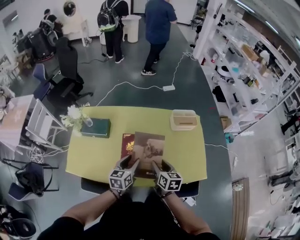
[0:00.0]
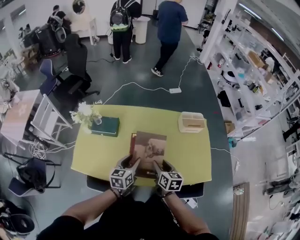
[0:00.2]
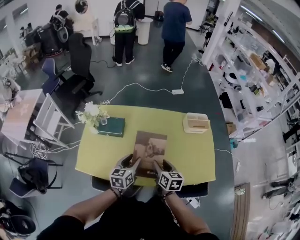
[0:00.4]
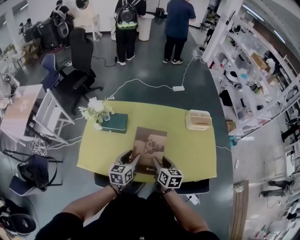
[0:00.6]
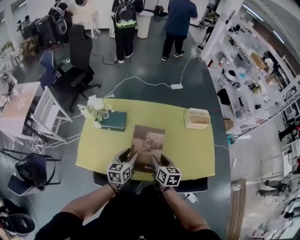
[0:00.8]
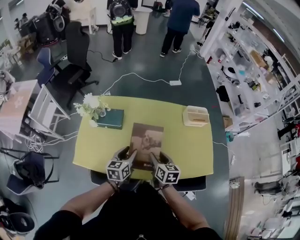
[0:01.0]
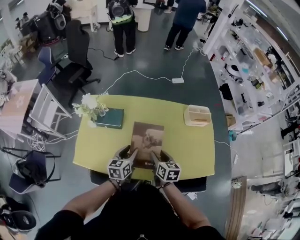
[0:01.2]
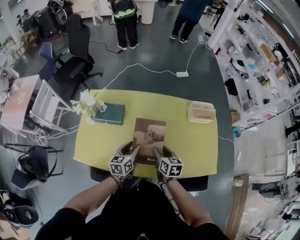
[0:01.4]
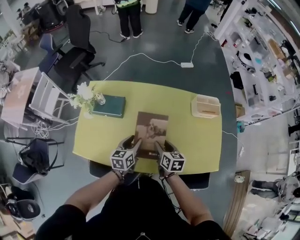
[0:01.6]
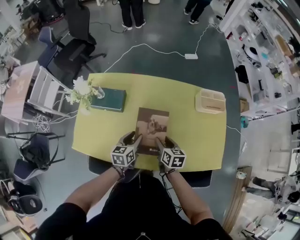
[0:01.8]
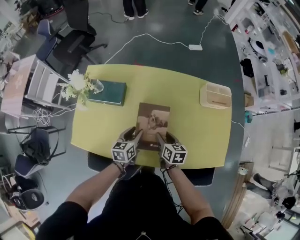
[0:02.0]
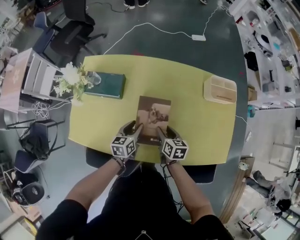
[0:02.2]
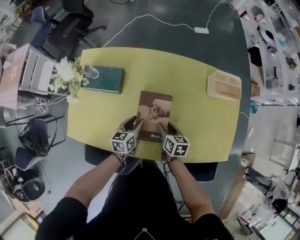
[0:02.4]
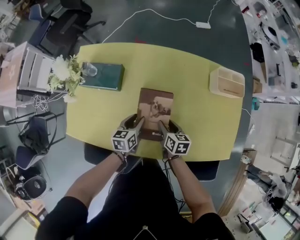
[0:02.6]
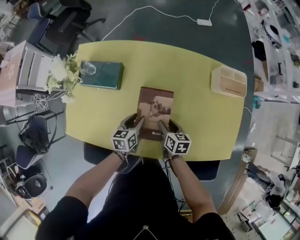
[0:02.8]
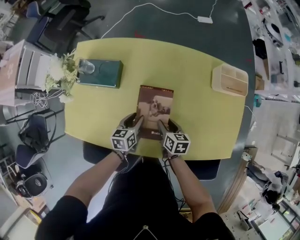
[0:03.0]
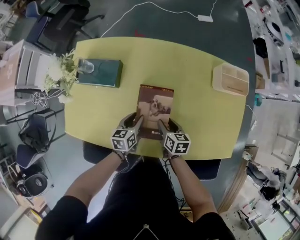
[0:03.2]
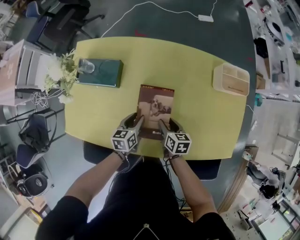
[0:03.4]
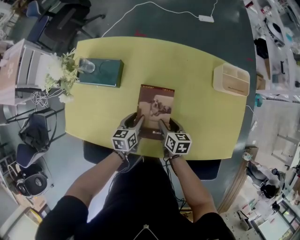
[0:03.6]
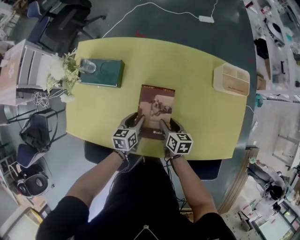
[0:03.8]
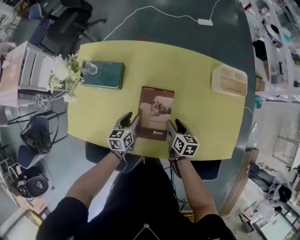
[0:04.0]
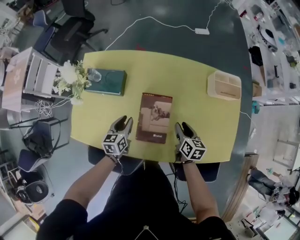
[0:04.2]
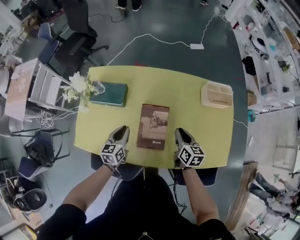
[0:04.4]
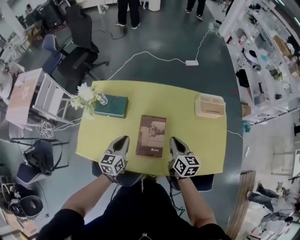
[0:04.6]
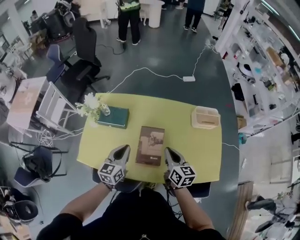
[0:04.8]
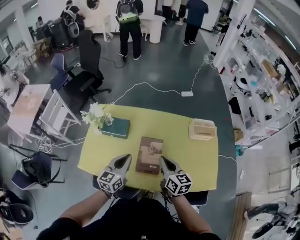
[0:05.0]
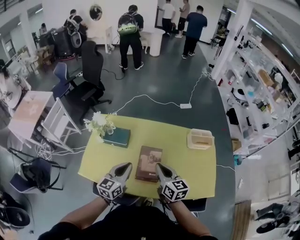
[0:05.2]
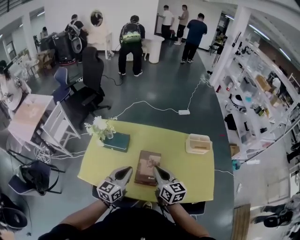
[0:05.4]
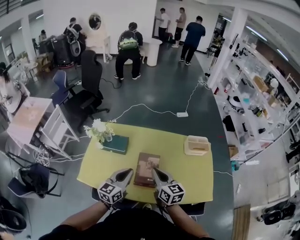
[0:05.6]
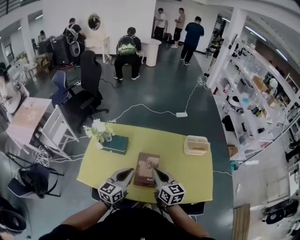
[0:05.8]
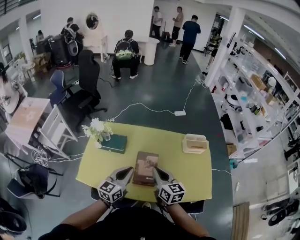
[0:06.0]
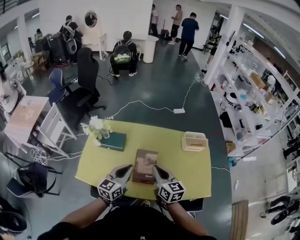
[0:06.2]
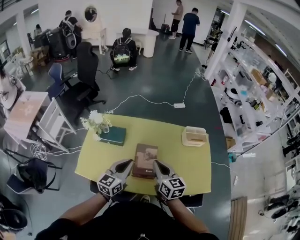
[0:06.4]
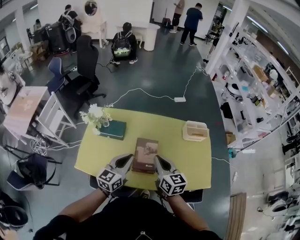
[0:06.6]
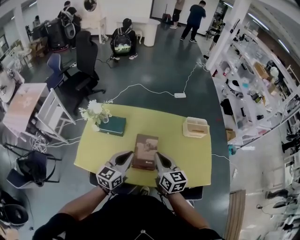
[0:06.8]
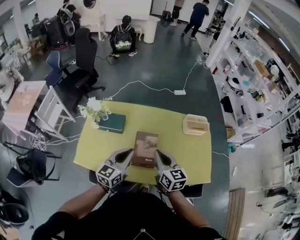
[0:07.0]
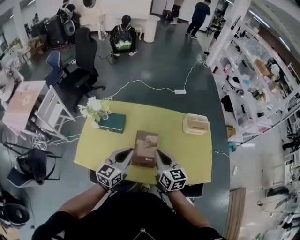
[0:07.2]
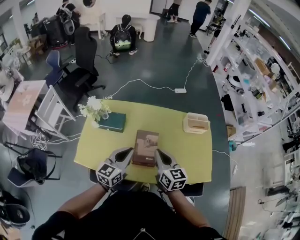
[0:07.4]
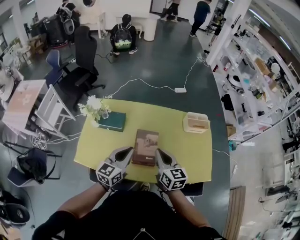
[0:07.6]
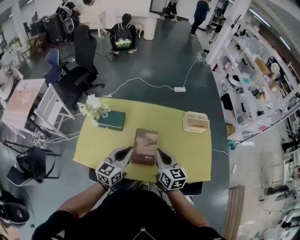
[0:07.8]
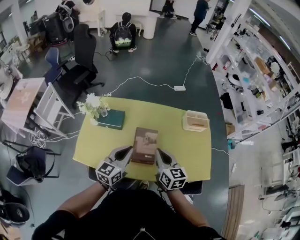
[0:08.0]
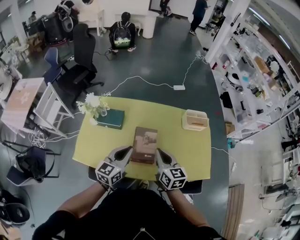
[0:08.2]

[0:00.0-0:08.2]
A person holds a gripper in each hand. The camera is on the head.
0.0 to 1.6 s: Both grippers travel together to the left, downward and forward, approximately 15 cm.
1.6 to 3.2 s: The two grippers go roughly 20 cm downward.
3.2 to 5.0 s: The two grippers go about 35 cm upward. The left gripper turns by about 30 degrees, and closes its fingers. Meanwhile the right gripper rotates some 30 degrees, and closes.
5.0 to 6.6 s: The right gripper shifts by some 5 cm. The left gripper changes place by approximately 5 cm.
6.6 to 8.2 s: The grippers make only small movements.

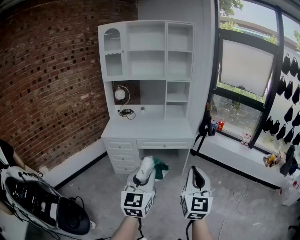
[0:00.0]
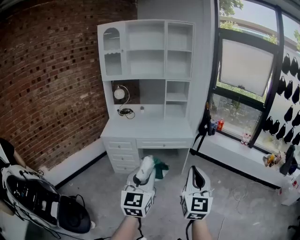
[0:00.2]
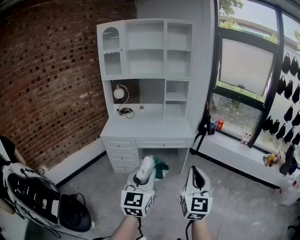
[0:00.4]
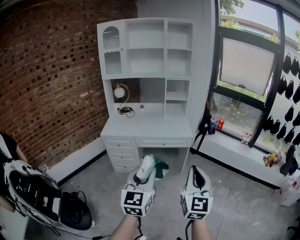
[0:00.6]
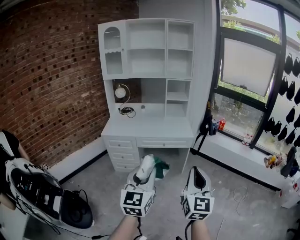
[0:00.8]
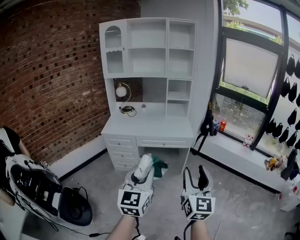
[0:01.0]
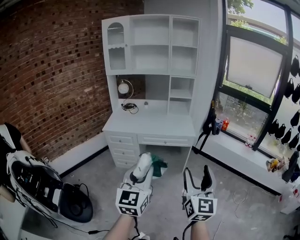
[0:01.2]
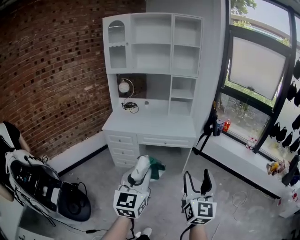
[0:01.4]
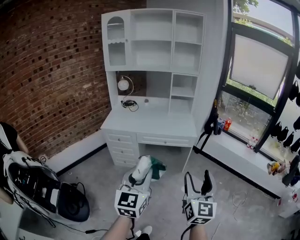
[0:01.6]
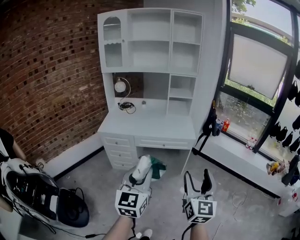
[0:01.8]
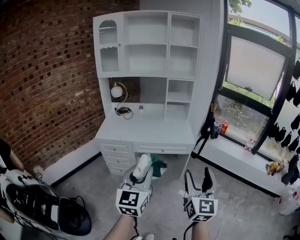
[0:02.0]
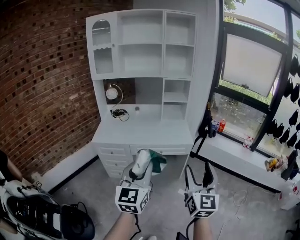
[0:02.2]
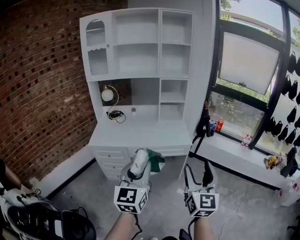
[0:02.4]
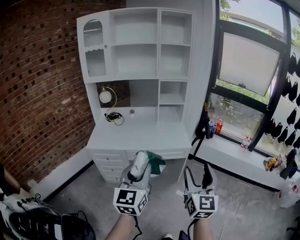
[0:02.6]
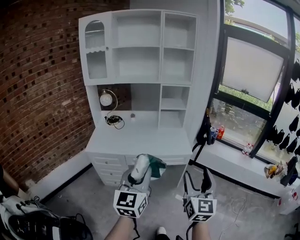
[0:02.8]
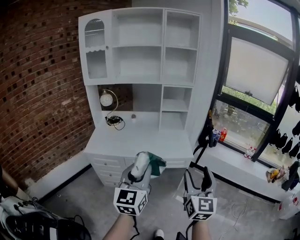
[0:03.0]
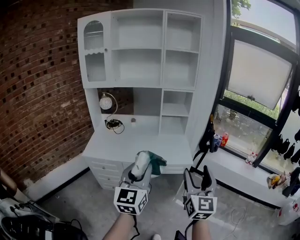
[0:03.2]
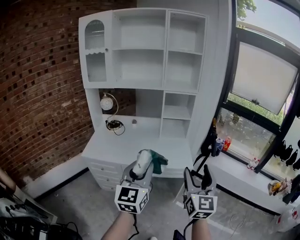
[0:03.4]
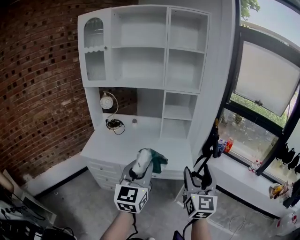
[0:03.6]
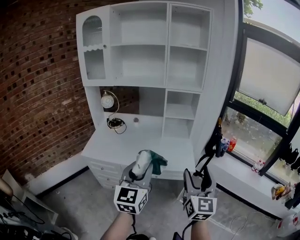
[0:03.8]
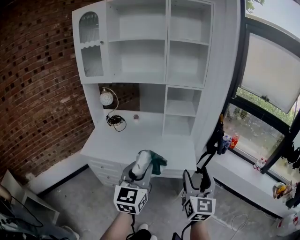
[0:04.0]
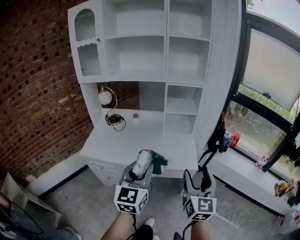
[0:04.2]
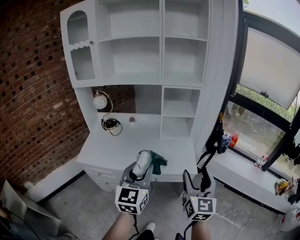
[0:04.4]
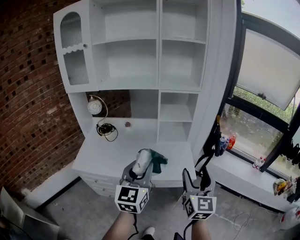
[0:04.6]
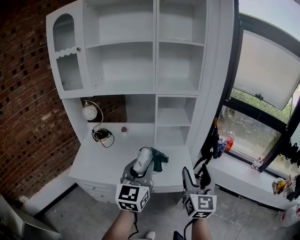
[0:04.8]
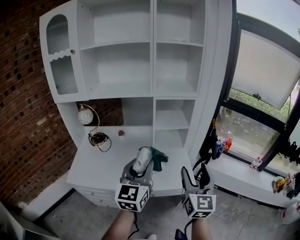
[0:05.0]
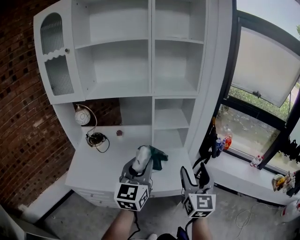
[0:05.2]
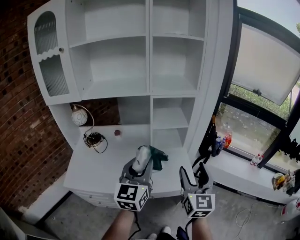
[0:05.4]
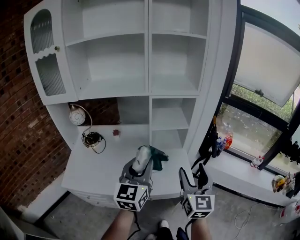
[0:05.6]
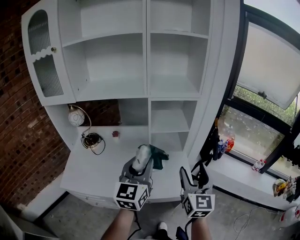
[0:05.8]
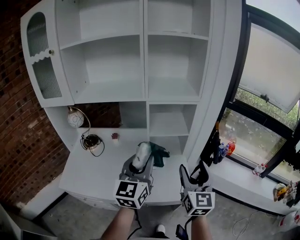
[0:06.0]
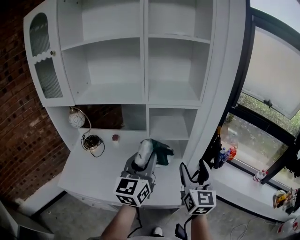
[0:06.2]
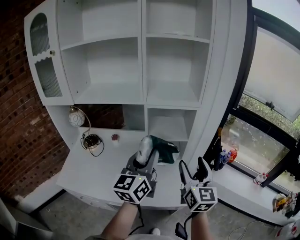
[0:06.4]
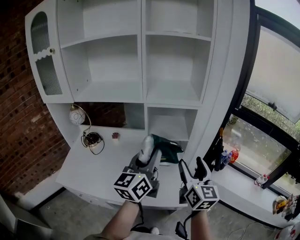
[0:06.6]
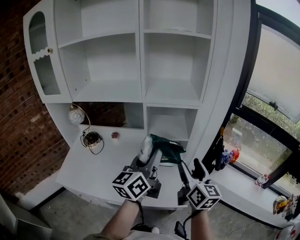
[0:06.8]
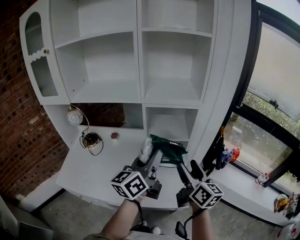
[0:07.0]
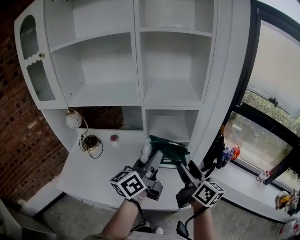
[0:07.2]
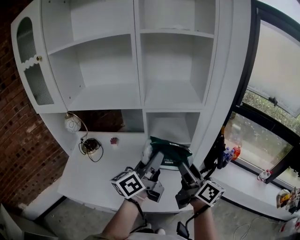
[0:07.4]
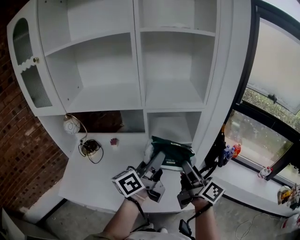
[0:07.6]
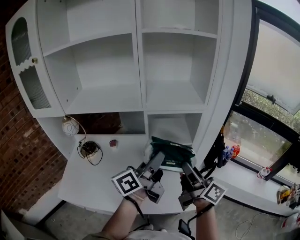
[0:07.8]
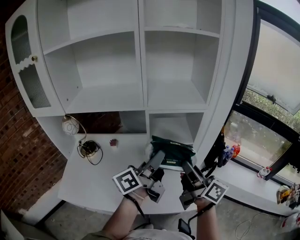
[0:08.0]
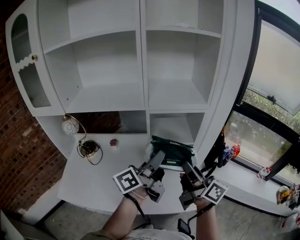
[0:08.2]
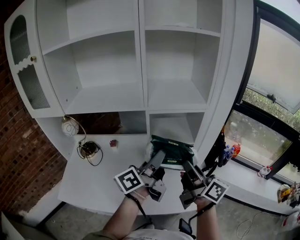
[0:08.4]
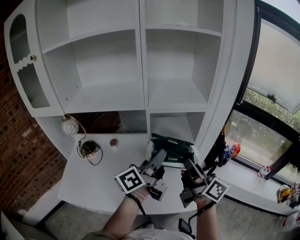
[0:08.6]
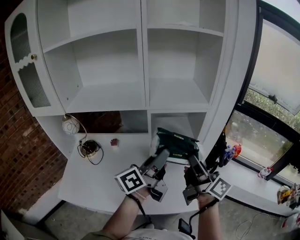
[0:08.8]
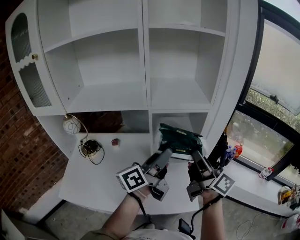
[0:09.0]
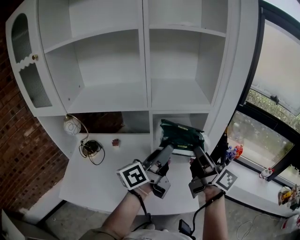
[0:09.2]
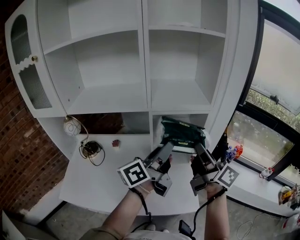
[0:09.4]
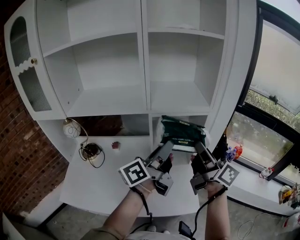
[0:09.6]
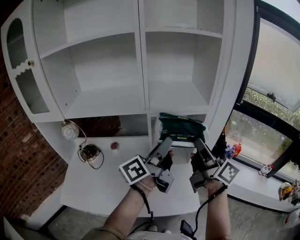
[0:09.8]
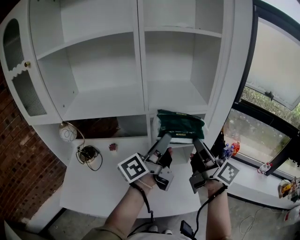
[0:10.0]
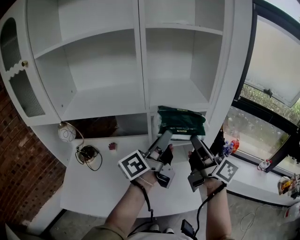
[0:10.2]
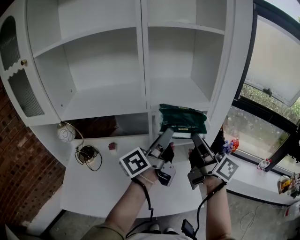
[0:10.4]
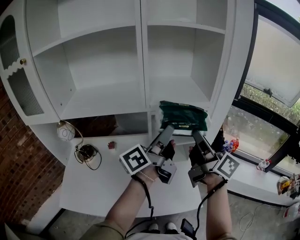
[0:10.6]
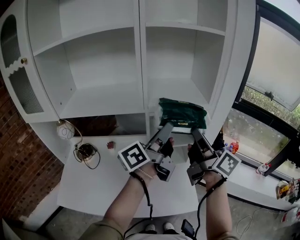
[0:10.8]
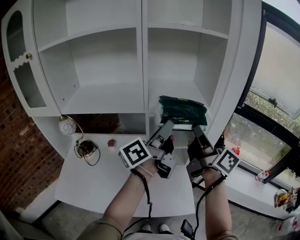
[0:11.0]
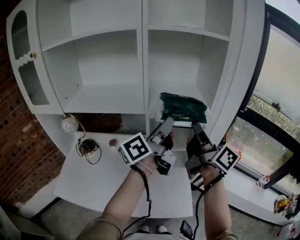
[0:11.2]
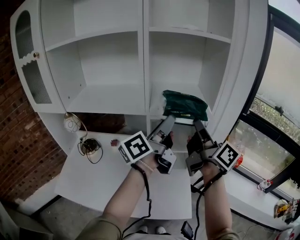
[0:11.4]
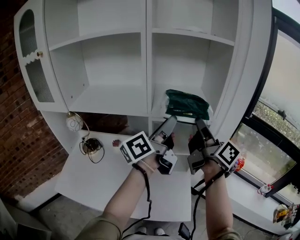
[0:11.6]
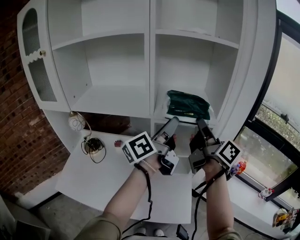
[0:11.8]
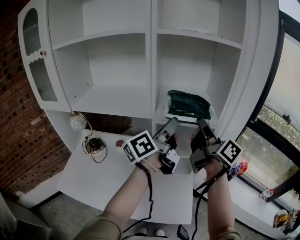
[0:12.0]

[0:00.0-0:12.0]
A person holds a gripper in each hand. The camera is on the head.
0.0 to 1.6 s: The right gripper is displaced forward and to the right by about 10 cm, and opens; the left gripper goes some 5 cm forward.
1.6 to 3.0 s: Both grippers travel together forward, roughly 25 cm.
3.0 to 4.4 s: The two grippers go some 20 cm forward.
4.4 to 6.0 s: Both grippers travel together forward, some 25 cm.
6.0 to 7.6 s: Both grippers move forward, about 10 cm. The right gripper rotates around the line of its fingers by about 60 degrees, clockwise from behind. The left gripper rotates around the line of its fingers by some 50 degrees, counterclockwise from behind.
7.6 to 9.0 s: The right gripper shifts by about 5 cm, and closes its fingers.
9.0 to 10.4 s: The left gripper ends up some 5 cm from where it was, and closes up; the right gripper ends up approximately 5 cm from where it was.
10.4 to 12.0 s: The grippers both shift forward by roughly 10 cm.

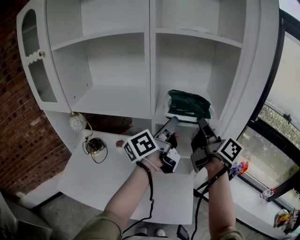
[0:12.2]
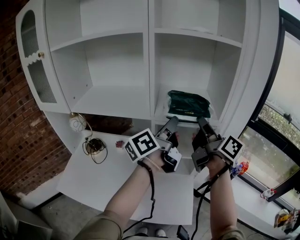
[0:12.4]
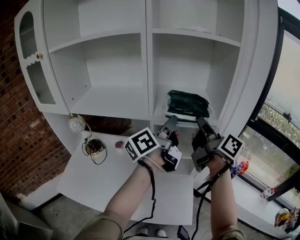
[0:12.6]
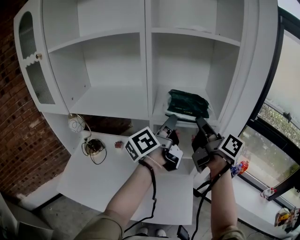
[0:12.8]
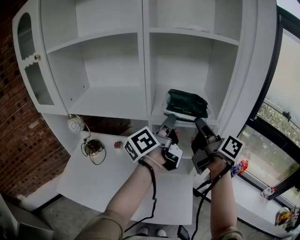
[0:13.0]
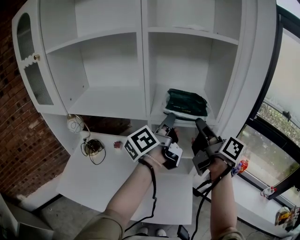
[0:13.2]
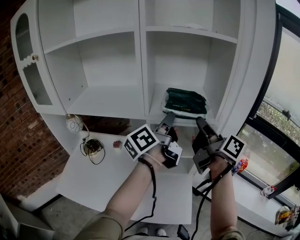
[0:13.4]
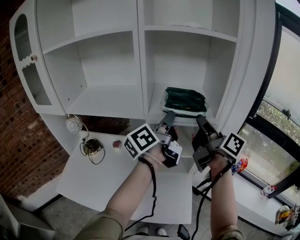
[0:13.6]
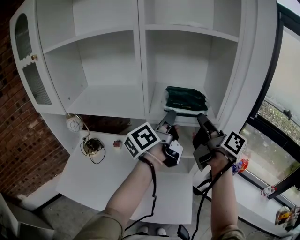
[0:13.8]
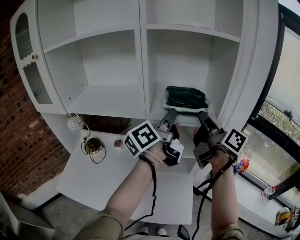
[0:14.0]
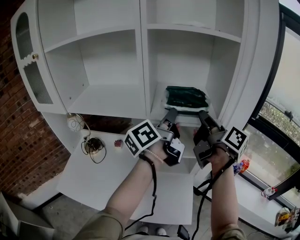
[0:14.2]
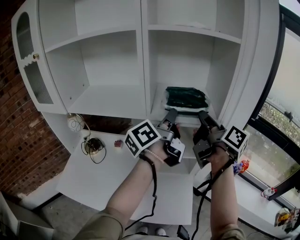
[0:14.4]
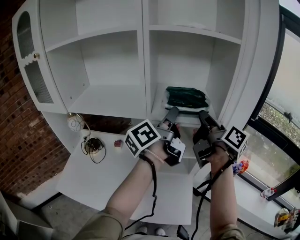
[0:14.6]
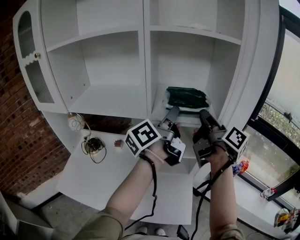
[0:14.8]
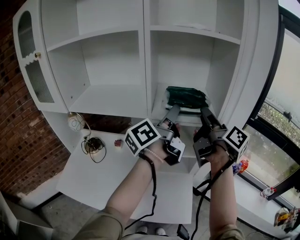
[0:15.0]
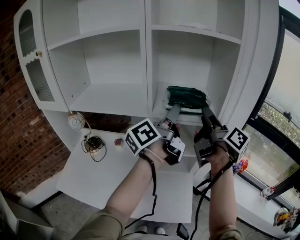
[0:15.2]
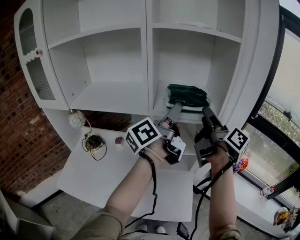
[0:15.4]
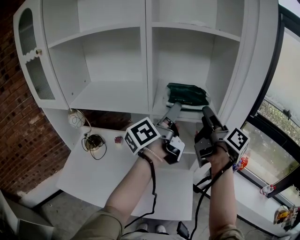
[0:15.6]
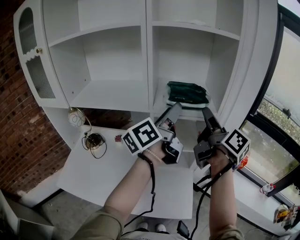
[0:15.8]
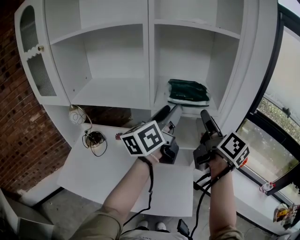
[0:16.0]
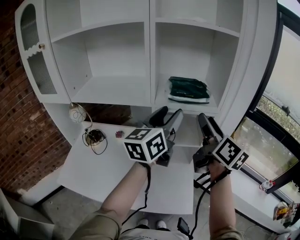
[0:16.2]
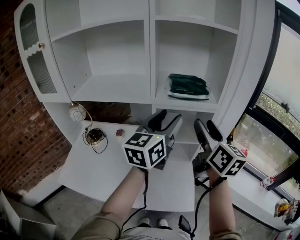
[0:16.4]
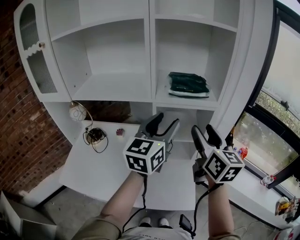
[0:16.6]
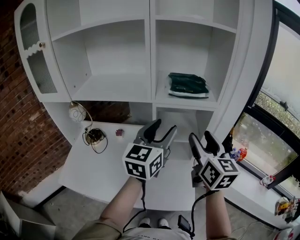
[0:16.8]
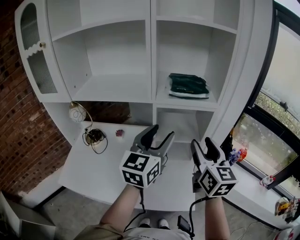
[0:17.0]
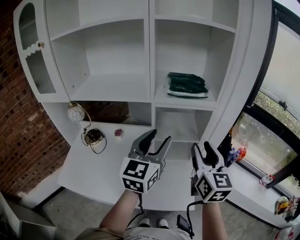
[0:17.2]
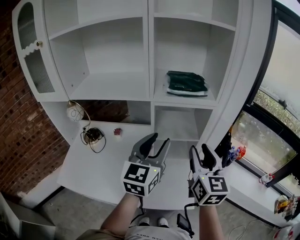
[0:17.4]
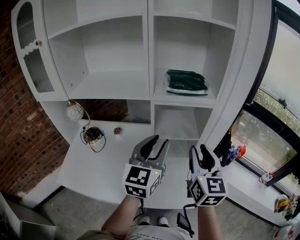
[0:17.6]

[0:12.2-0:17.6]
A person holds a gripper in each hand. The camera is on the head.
12.2 to 13.6 s: There are only small adjustments of the grippers.
13.6 to 15.0 s: The right gripper opens up. Meanwhile the left gripper opens.
15.0 to 16.2 s: The two grippers go about 5 cm backward. The right gripper swivels roughly 30 degrees, while the left gripper rotates around the line of its fingers by roughly 40 degrees, clockwise from behind.
16.2 to 17.6 s: Both grippers travel together backward and downward, some 15 cm. The right gripper changes its angle by approximately 30 degrees, and closes its fingers; the left gripper rotates approximately 20 degrees, and closes up.
